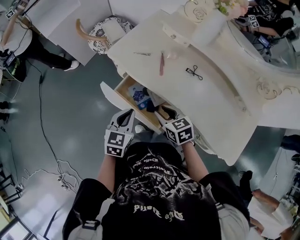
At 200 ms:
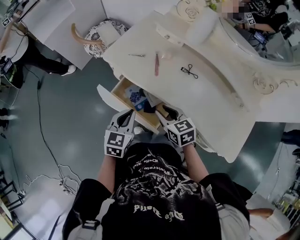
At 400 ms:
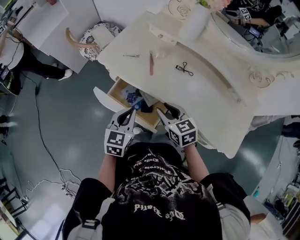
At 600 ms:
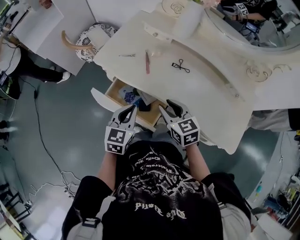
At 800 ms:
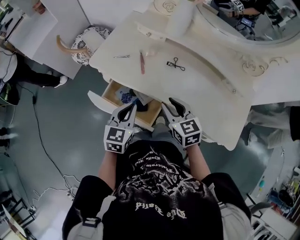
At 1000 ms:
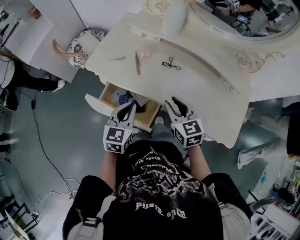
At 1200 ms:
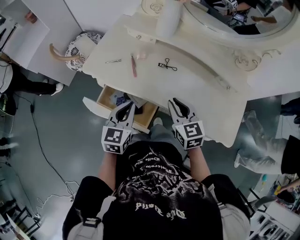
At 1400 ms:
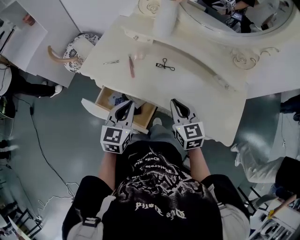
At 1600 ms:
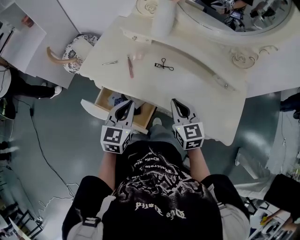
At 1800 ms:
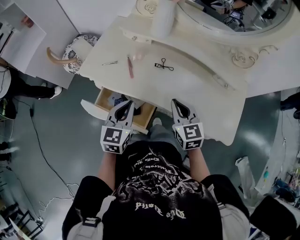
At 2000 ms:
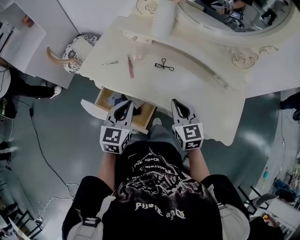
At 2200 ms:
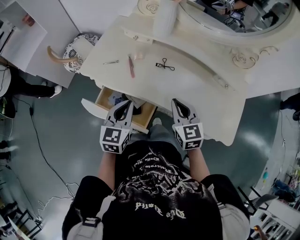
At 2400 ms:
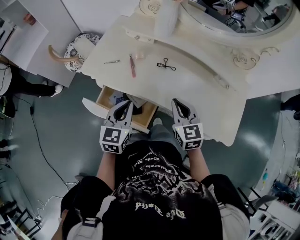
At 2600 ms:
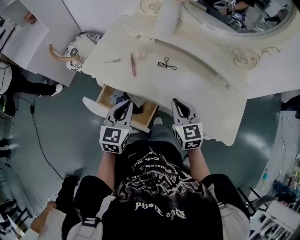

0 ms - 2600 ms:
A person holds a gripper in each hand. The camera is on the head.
0 ms - 1200 ms: The left gripper is displaced to the right by roughly 10 cm; the right gripper is displaced to the right and upward by approximately 15 cm, and changes its angle by about 30 degrees.
1200 ms - 2600 ms: There are only small adjustments of the grippers.

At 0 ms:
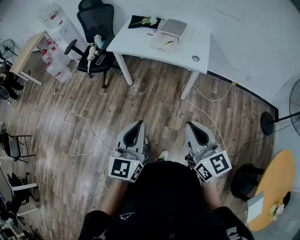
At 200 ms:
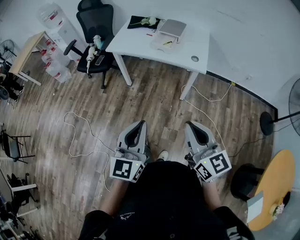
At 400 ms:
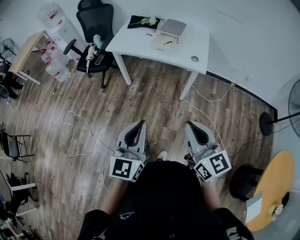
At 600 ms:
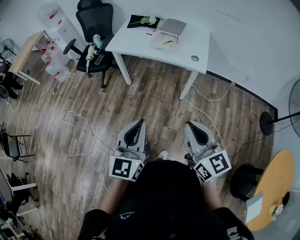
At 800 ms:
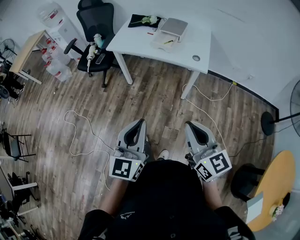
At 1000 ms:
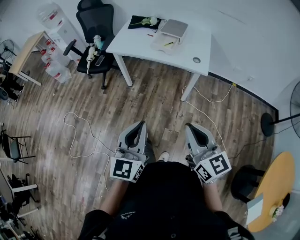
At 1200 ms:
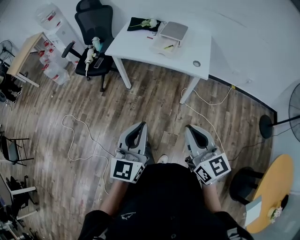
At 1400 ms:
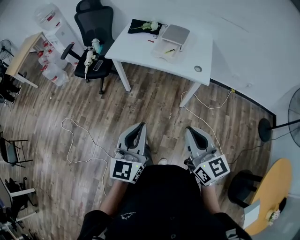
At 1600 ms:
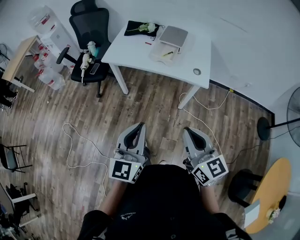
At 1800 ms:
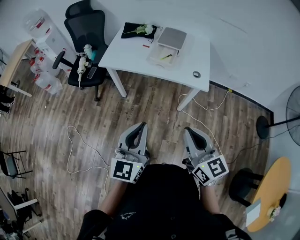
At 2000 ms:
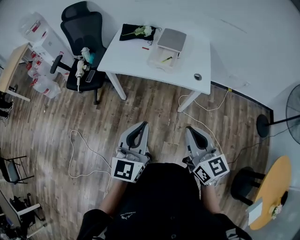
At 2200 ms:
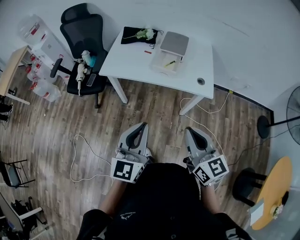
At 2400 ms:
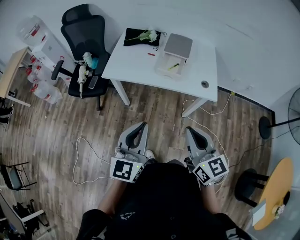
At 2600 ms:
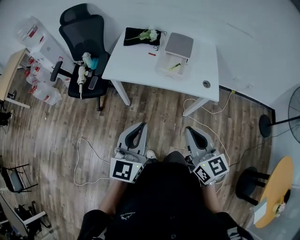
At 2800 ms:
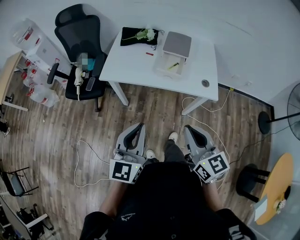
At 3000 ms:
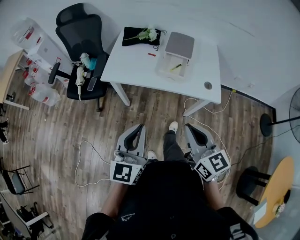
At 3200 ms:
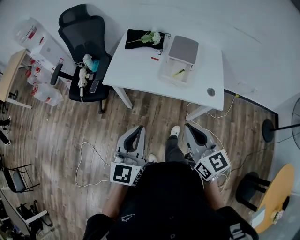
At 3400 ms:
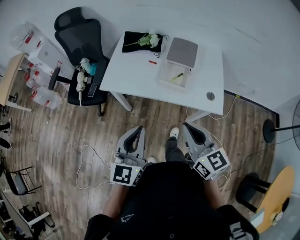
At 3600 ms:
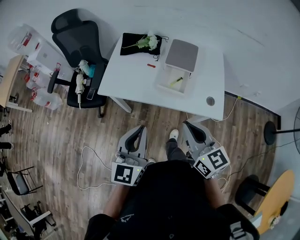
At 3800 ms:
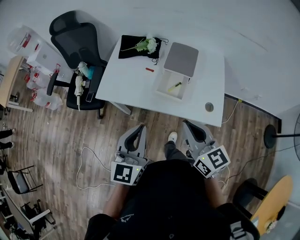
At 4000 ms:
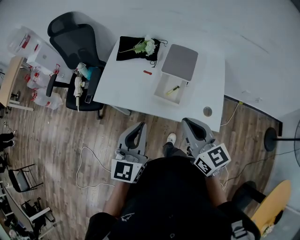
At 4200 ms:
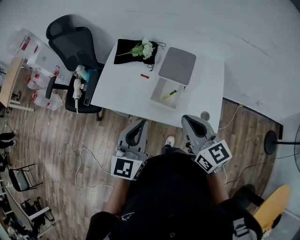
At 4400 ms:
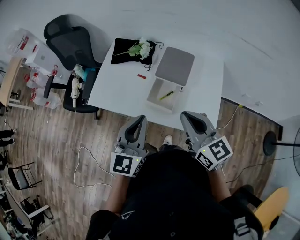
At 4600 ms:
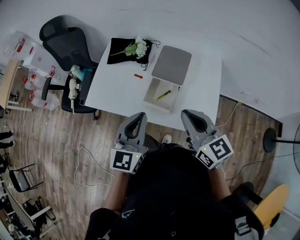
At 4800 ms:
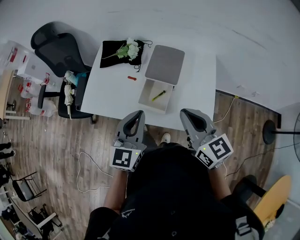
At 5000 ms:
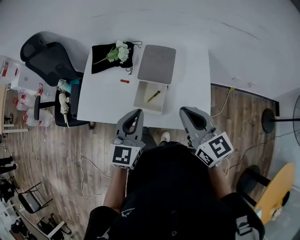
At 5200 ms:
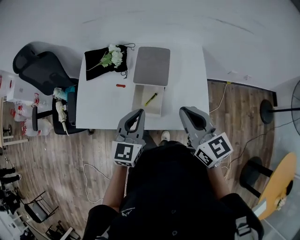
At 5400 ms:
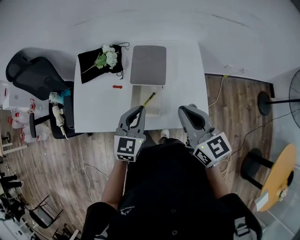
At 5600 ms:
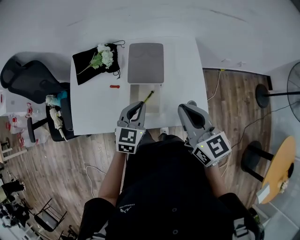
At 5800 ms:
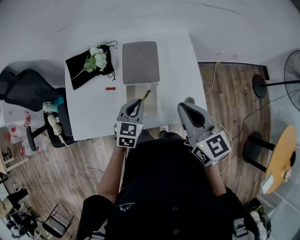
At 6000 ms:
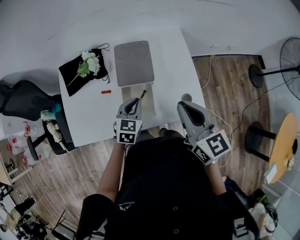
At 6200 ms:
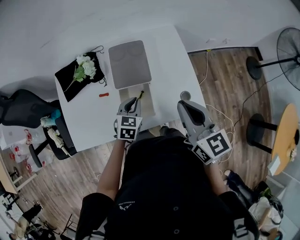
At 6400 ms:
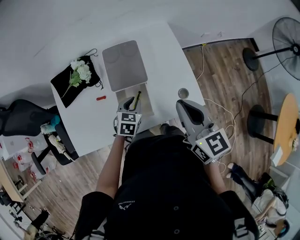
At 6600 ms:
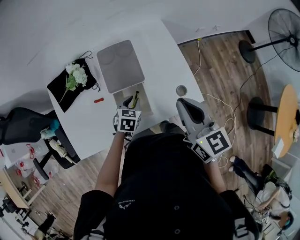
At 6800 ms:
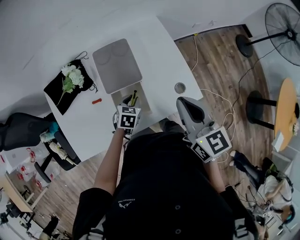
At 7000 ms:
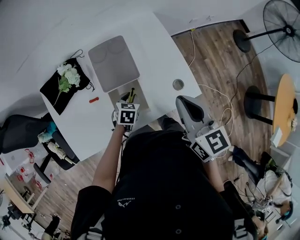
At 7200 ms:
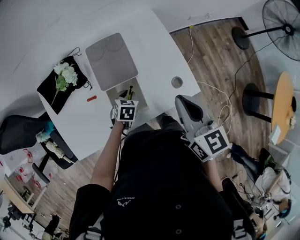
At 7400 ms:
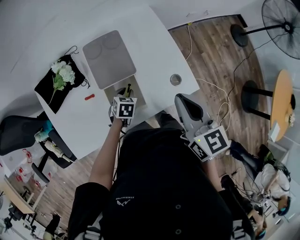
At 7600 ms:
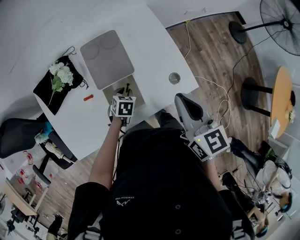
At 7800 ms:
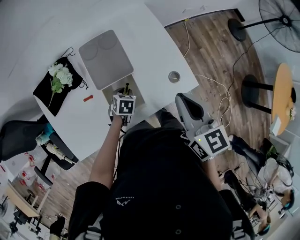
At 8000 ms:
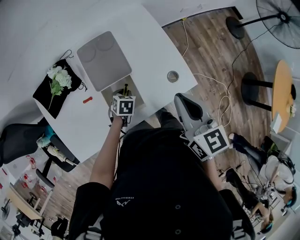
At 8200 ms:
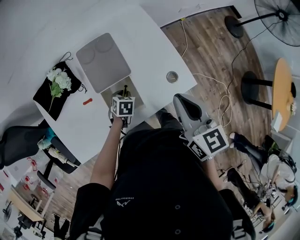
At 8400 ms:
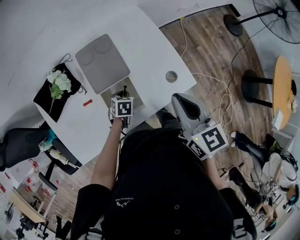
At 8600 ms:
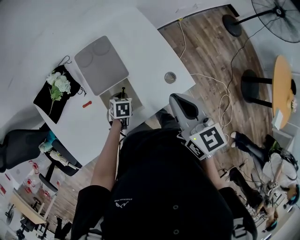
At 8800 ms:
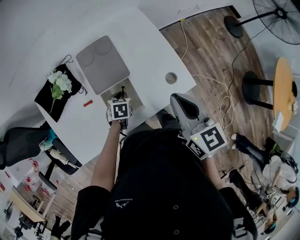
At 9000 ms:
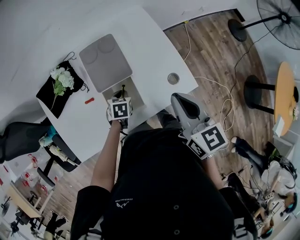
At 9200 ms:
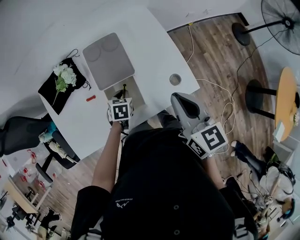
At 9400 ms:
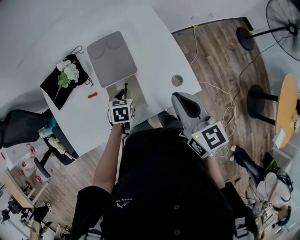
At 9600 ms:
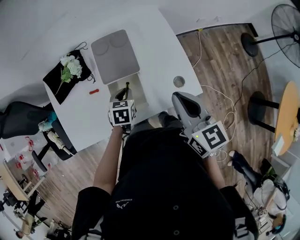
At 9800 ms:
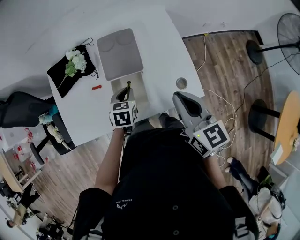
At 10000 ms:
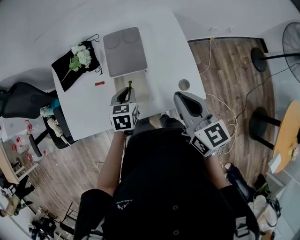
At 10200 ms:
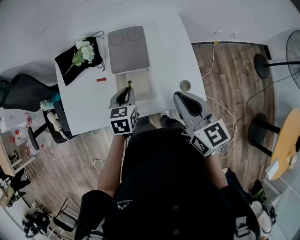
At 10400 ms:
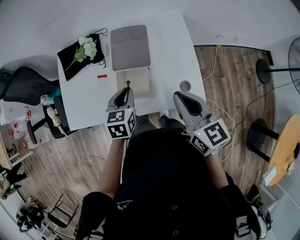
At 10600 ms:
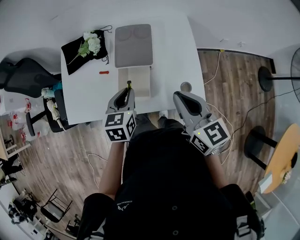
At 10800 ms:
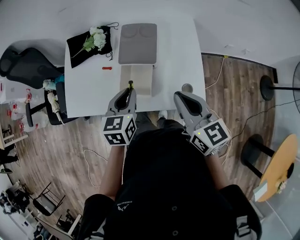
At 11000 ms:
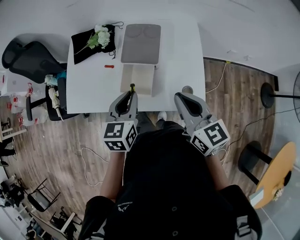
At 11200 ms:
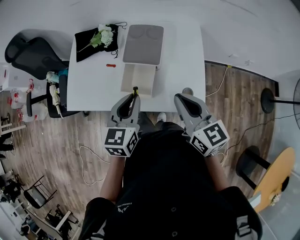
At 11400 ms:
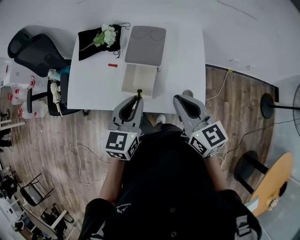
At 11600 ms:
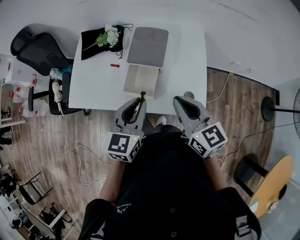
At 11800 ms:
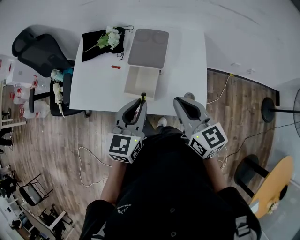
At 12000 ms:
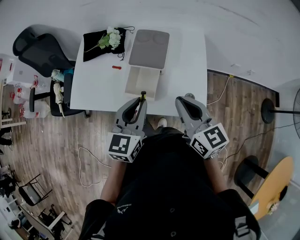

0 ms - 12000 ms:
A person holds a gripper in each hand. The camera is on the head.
0 ms - 1600 ms: The grippers both shift forward by some 15 cm.
1600 ms - 3000 ms: The grippers both shift forward and to the left by approximately 20 cm.
3000 ms - 4400 ms: Both grippers travel together forward and to the right, some 30 cm.
4400 ms - 6000 ms: The right gripper ends up about 10 cm from where it was, and turns by about 30 degrees. The left gripper goes approximately 20 cm downward, and points its fingers roughly 30 degrees further downward.
6000 ms - 7600 ms: The left gripper travels downward by roughly 15 cm, rotates approximately 30 degrees, and opens its fingers. Meanwhile the right gripper changes its angle by roughly 20 degrees.
7600 ms - 9000 ms: There are only small adjustments of the grippers.
9000 ms - 10400 ms: The left gripper moves upward, about 15 cm, and changes its angle by about 30 degrees; the right gripper changes its angle by approximately 20 degrees.
10400 ms - 12000 ms: The left gripper moves upward and backward, some 15 cm, and rotates about 20 degrees.

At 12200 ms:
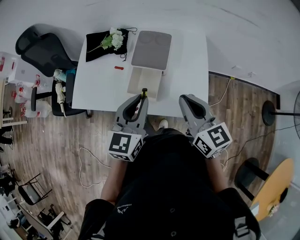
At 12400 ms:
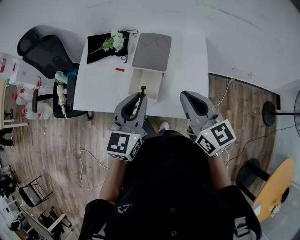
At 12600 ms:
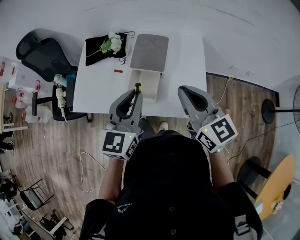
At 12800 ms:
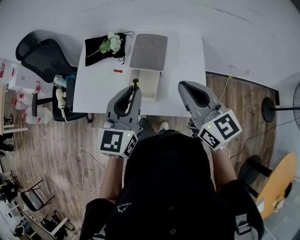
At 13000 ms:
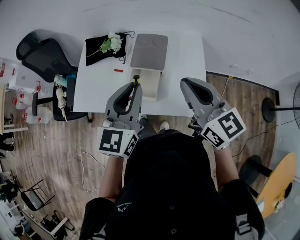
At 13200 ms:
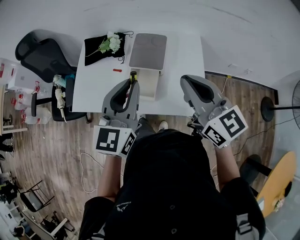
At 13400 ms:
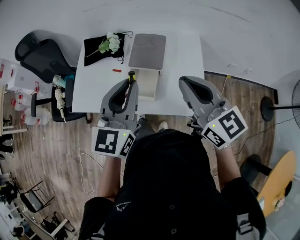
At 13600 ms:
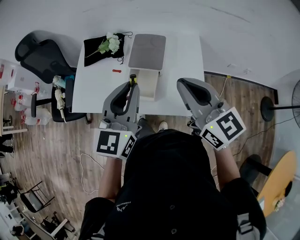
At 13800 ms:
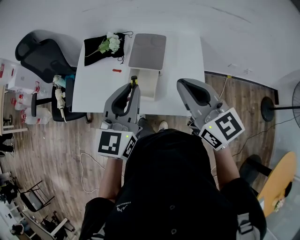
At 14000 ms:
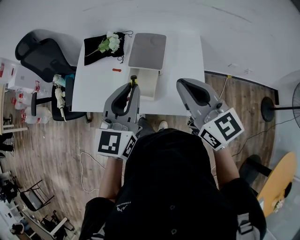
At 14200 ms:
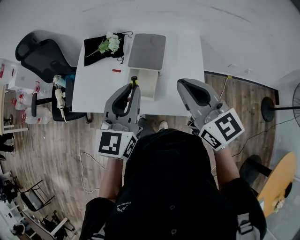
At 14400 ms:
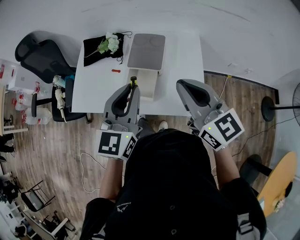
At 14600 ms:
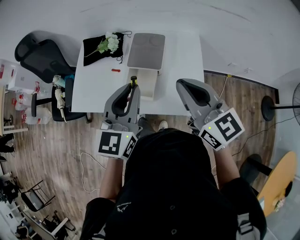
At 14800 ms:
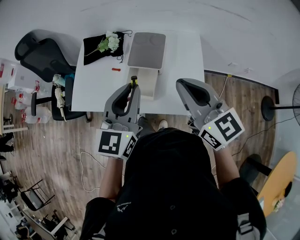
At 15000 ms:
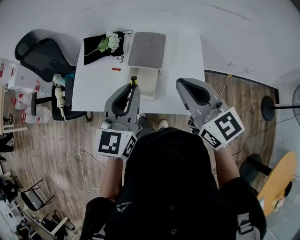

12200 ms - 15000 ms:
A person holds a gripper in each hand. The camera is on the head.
12200 ms - 13600 ms: The two grippers go roughly 10 cm upward.
13600 ms - 15000 ms: The grippers stay close to where they were, moving slightly.

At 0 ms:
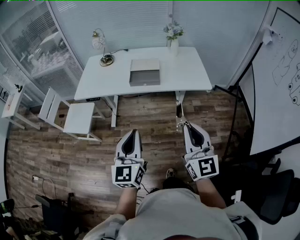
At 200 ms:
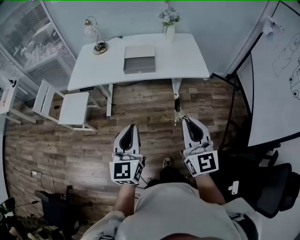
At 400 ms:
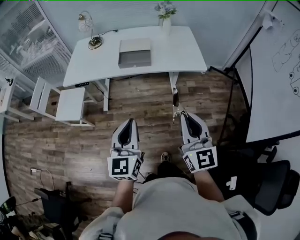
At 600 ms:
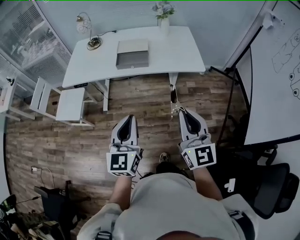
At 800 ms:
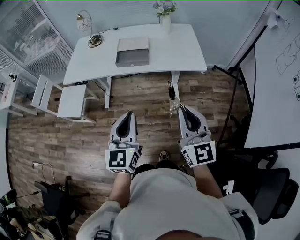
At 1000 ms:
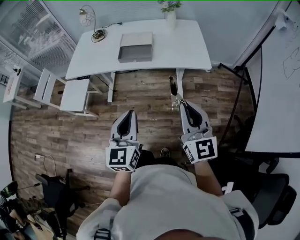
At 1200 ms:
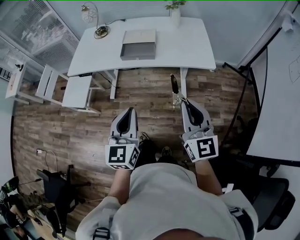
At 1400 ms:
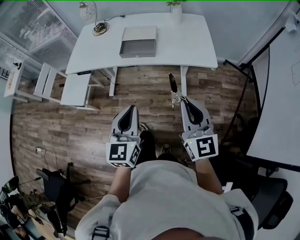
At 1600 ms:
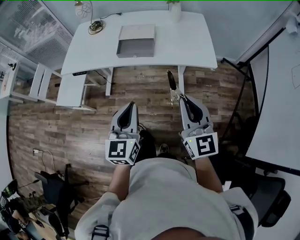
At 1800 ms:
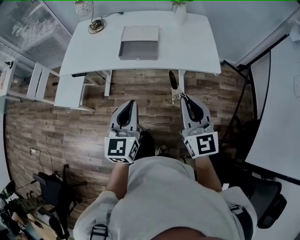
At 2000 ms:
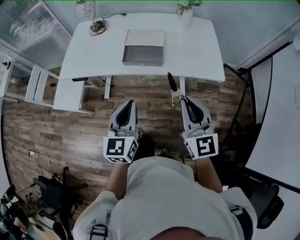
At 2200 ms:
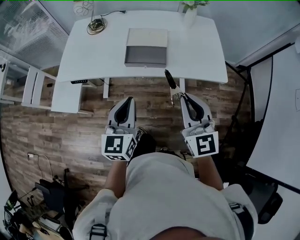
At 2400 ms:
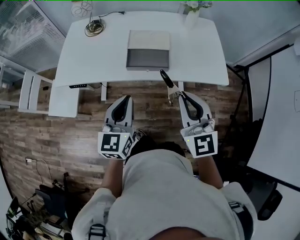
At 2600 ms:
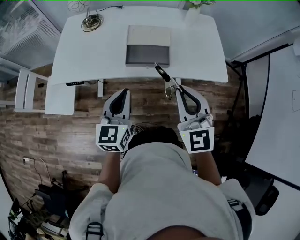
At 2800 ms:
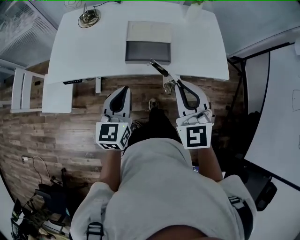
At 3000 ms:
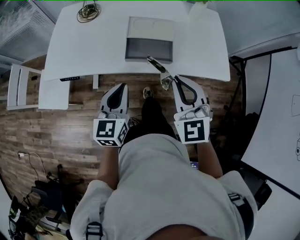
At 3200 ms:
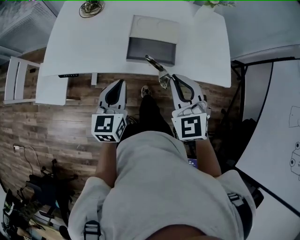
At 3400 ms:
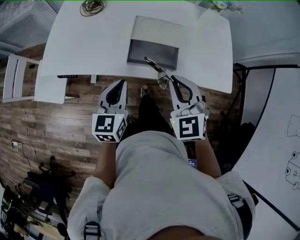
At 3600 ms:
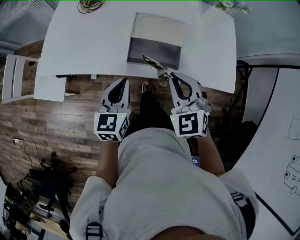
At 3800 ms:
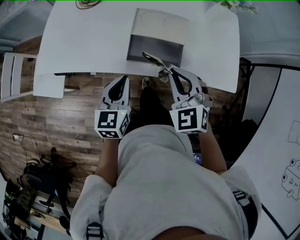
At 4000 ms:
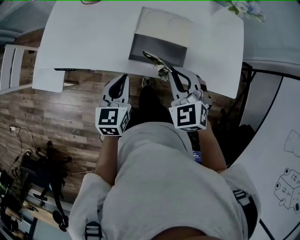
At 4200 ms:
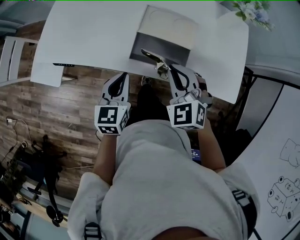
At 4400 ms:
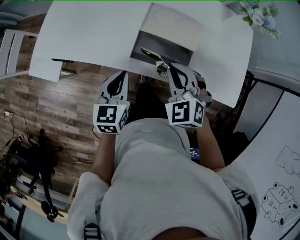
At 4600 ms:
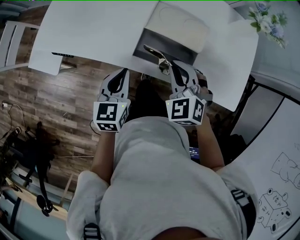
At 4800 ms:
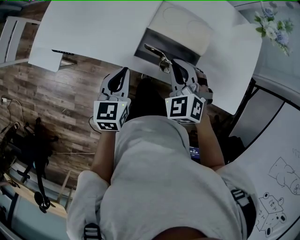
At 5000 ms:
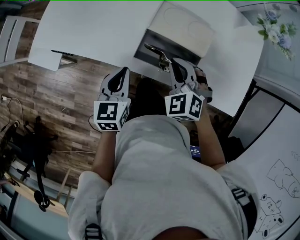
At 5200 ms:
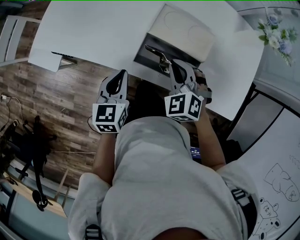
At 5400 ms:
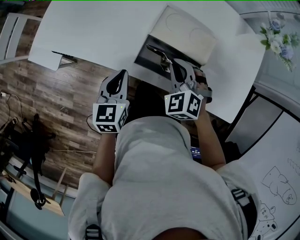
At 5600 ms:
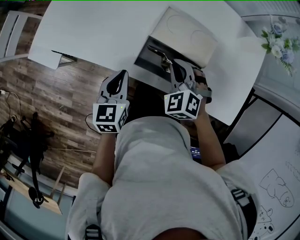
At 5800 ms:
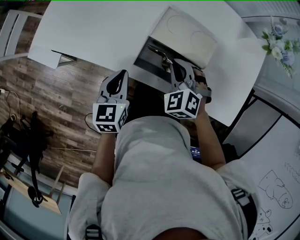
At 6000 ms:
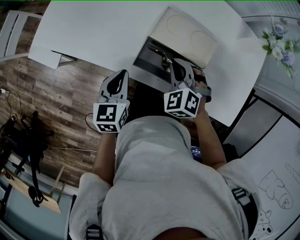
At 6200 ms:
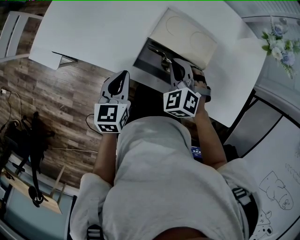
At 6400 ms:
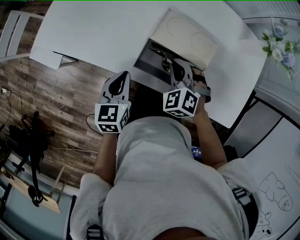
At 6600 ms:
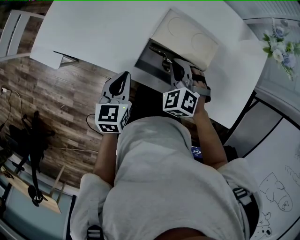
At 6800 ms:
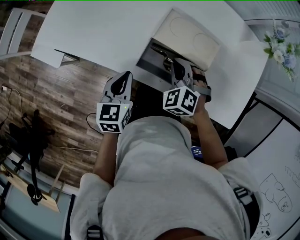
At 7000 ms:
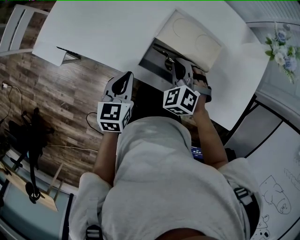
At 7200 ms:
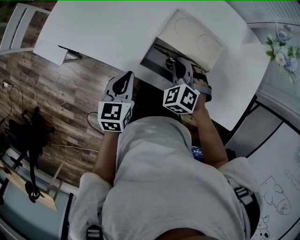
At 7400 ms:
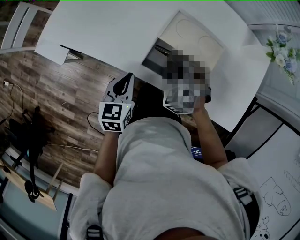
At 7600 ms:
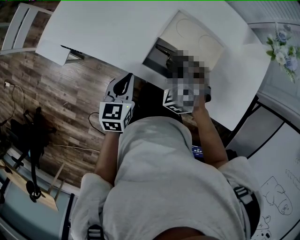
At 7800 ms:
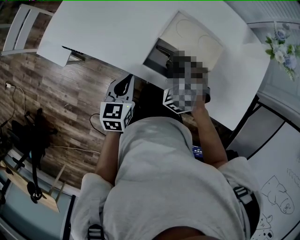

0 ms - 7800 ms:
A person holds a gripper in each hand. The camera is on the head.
0 ms - 1600 ms: The grippers both shift forward, to the right and downward by about 15 cm.
1600 ms - 3200 ms: The grippers both shift forward and to the left by some 30 cm. The right gripper turns by approximately 40 degrees.
3200 ms - 4600 ms: The grippers both shift downward and forward by roughly 15 cm. The right gripper rotates roughly 20 degrees.
4600 ms - 6200 ms: The right gripper travels downward and forward by approximately 10 cm.
6200 ms - 7800 ms: The grippers make only small movements.
